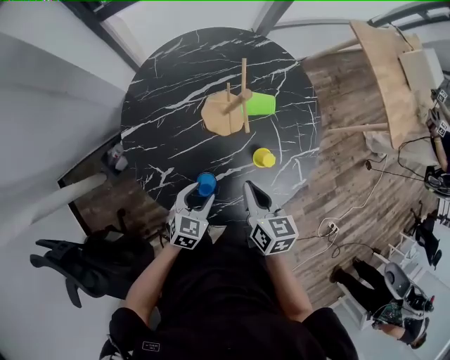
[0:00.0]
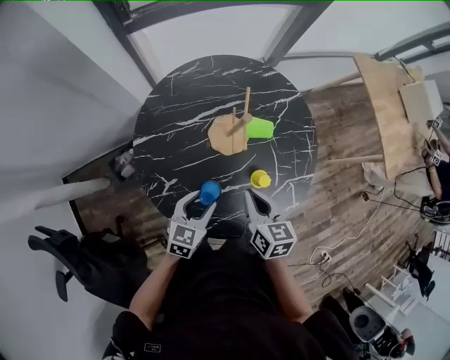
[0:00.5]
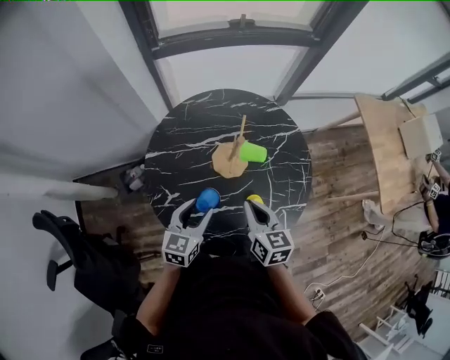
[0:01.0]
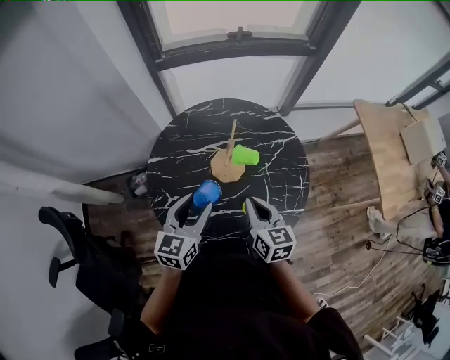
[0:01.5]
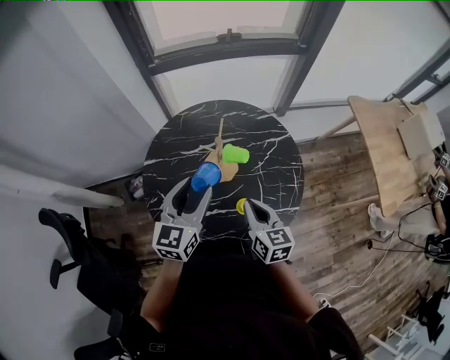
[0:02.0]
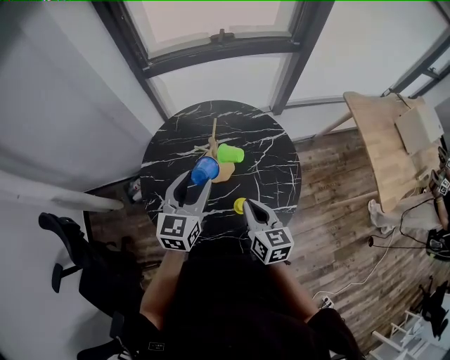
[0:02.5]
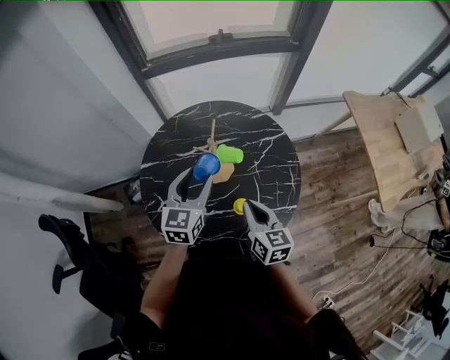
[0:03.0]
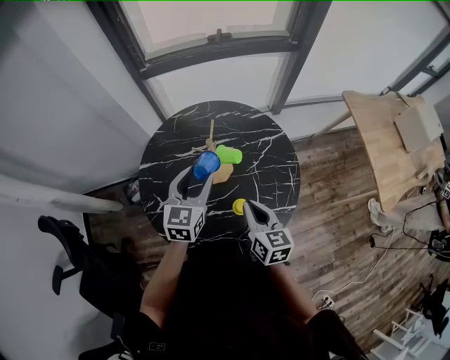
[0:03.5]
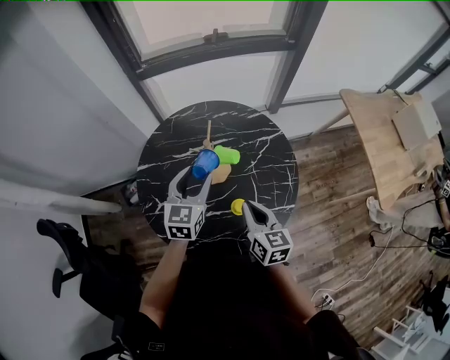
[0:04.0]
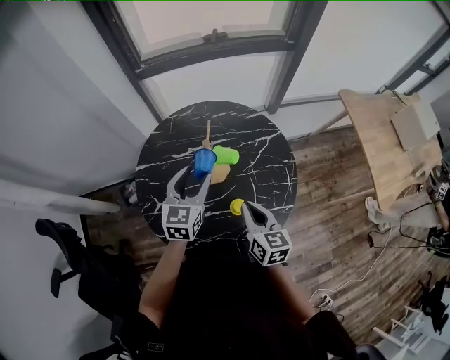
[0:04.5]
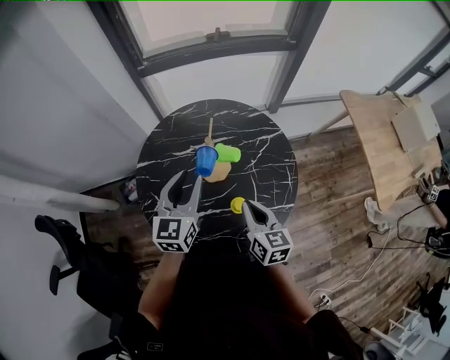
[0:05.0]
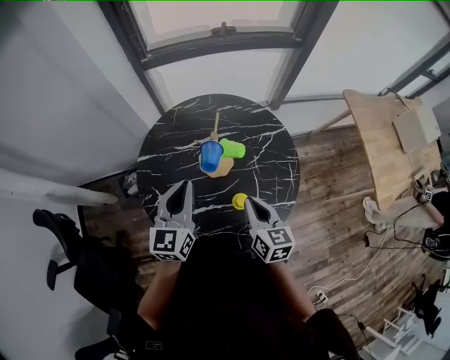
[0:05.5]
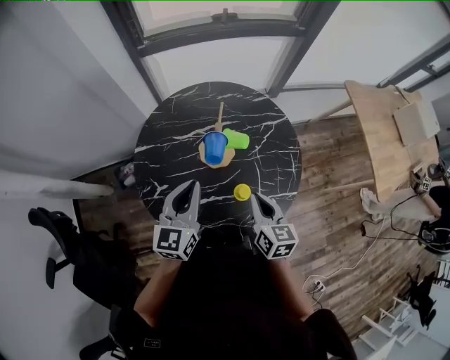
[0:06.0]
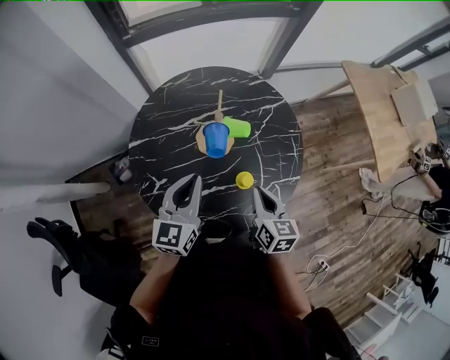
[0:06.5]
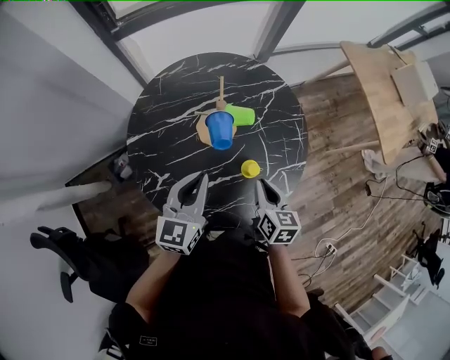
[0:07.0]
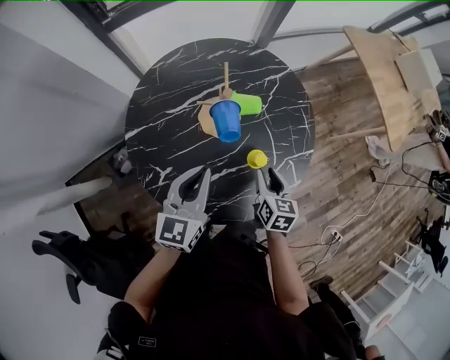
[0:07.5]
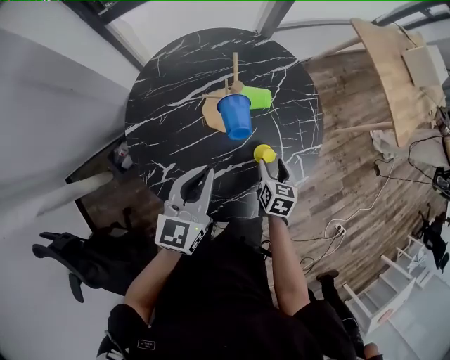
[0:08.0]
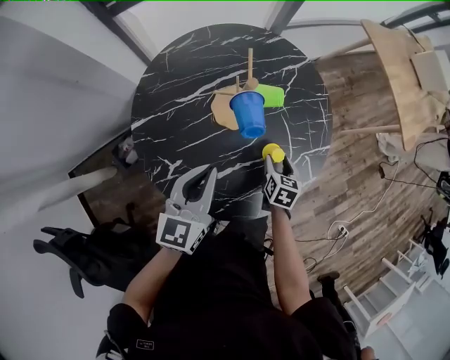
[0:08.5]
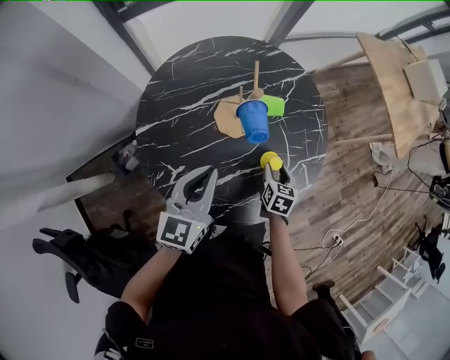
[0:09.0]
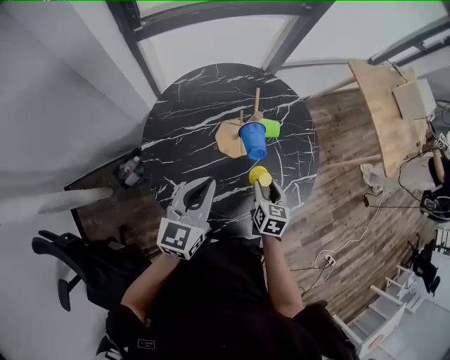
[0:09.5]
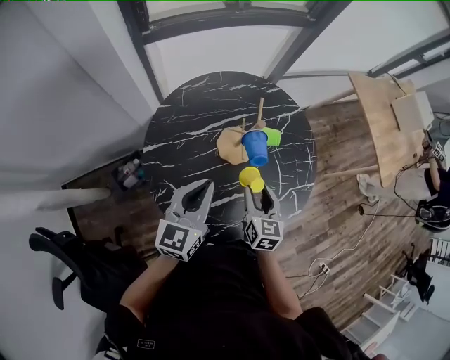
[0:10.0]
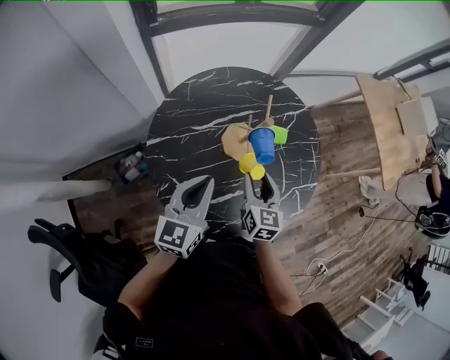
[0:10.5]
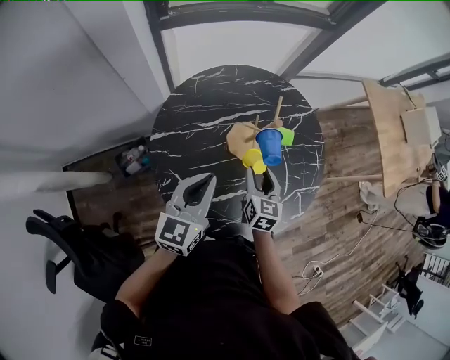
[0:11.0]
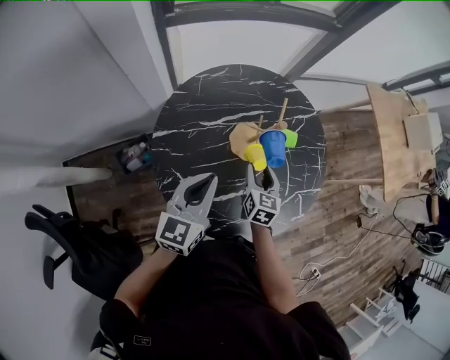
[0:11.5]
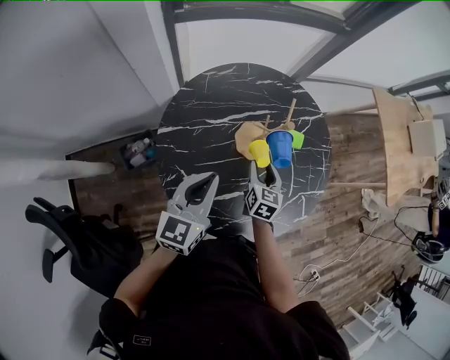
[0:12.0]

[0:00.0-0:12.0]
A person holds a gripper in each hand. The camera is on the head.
0:00.0 to 0:02.0: The left gripper goes about 30 cm upward, and tilts its fingers about 30 degrees upward. Meanwhile the right gripper is displaced upward and to the right by about 15 cm, and swivels approximately 20 degrees.
0:02.0 to 0:04.0: The left gripper goes some 10 cm downward and forward.
0:04.0 to 0:06.0: The left gripper shifts about 10 cm backward and to the left, and closes its fingers.
0:06.0 to 0:08.0: The left gripper moves downward, some 5 cm; the right gripper is displaced downward by about 20 cm, turns by about 30 degrees, and opens up.
0:08.0 to 0:10.0: The left gripper moves to the left, roughly 5 cm. The right gripper goes about 15 cm upward and to the left, and changes its angle by roughly 20 degrees.
0:10.0 to 0:12.0: The right gripper heads downward and forward, covering about 10 cm.

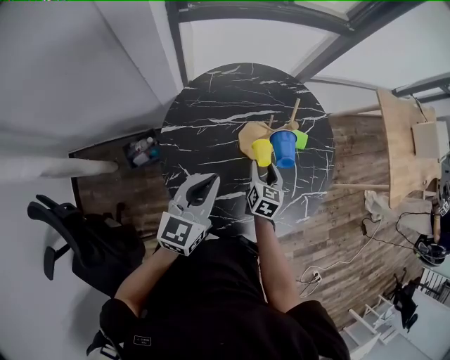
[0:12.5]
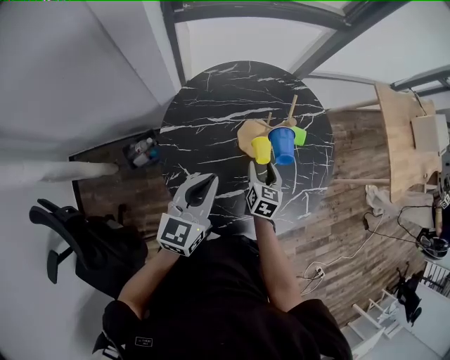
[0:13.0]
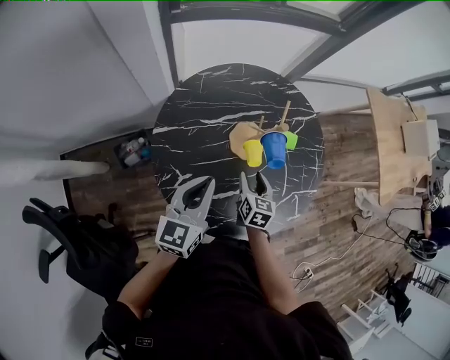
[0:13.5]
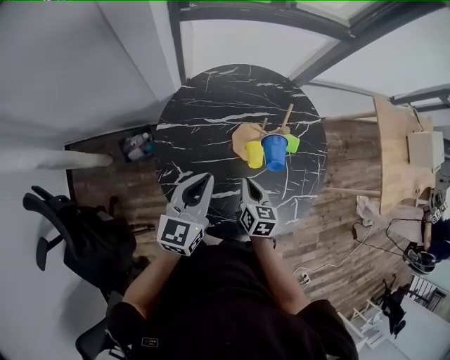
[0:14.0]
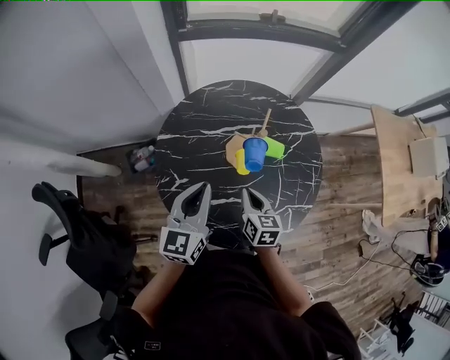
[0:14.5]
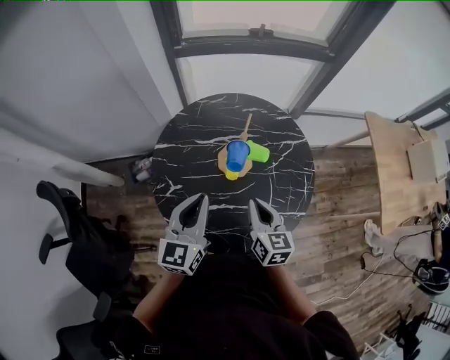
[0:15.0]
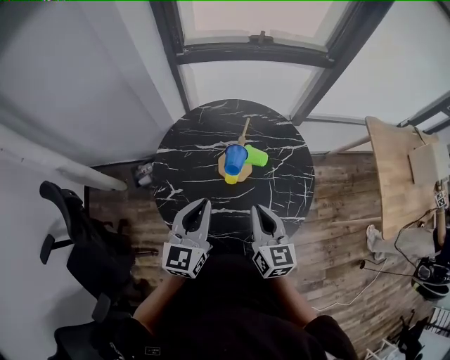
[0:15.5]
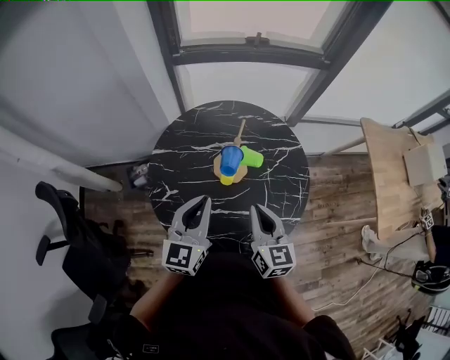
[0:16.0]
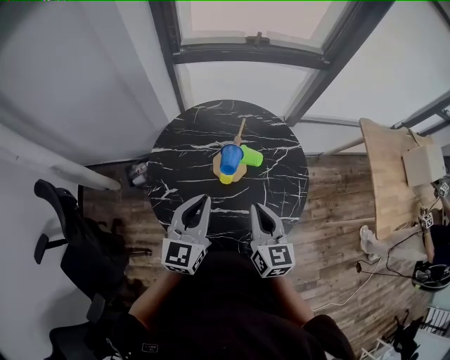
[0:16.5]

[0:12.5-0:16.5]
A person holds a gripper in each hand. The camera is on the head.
0:12.5 to 0:14.5: The right gripper shifts approximately 10 cm upward and backward, changes its angle by approximately 20 degrees, and closes up. The left gripper shifts by about 5 cm.
0:14.5 to 0:16.5: The left gripper travels to the right by roughly 5 cm. The right gripper moves upward and to the right, roughly 15 cm, and swivels approximately 20 degrees.

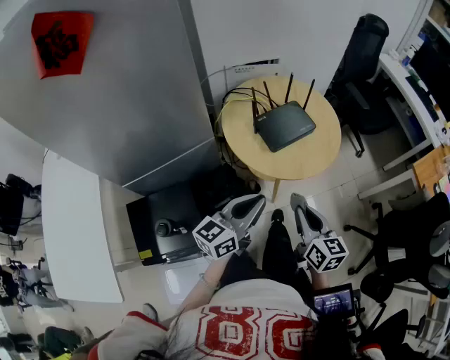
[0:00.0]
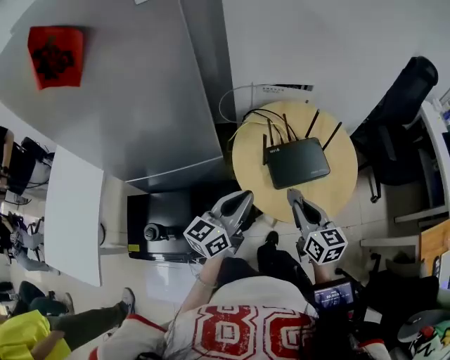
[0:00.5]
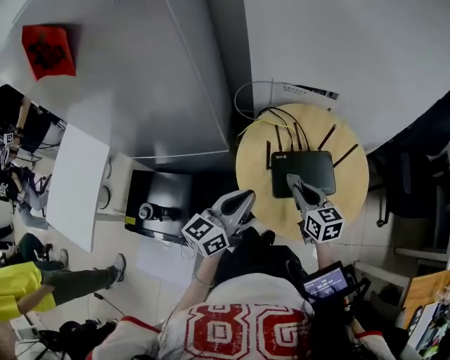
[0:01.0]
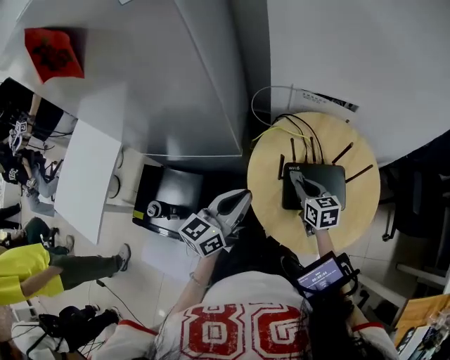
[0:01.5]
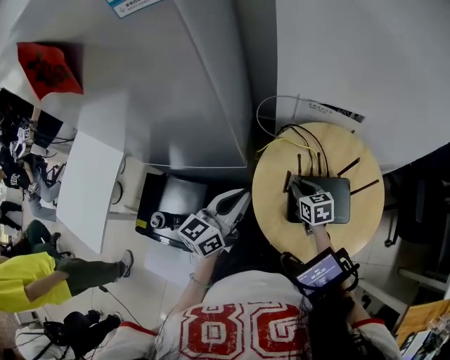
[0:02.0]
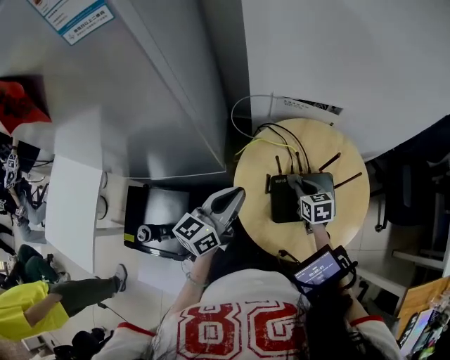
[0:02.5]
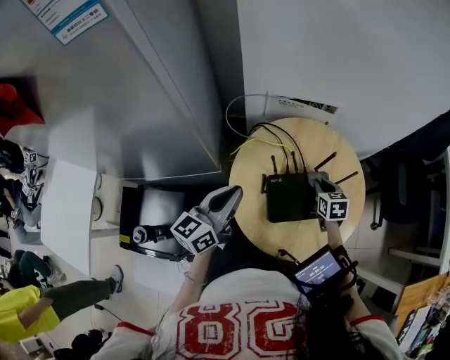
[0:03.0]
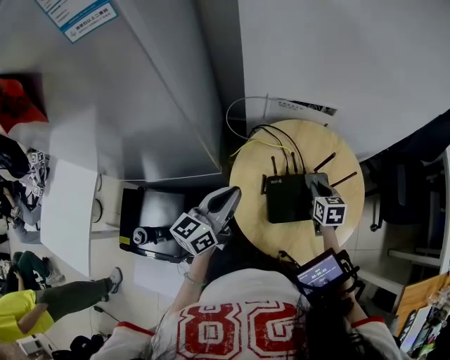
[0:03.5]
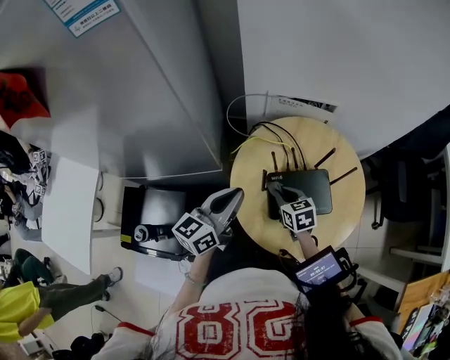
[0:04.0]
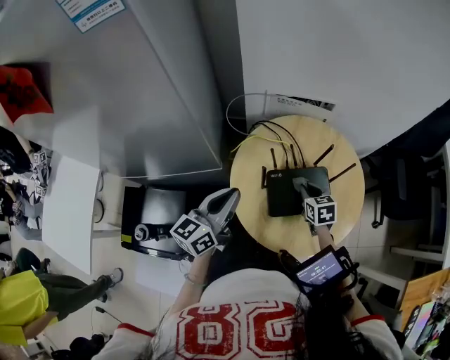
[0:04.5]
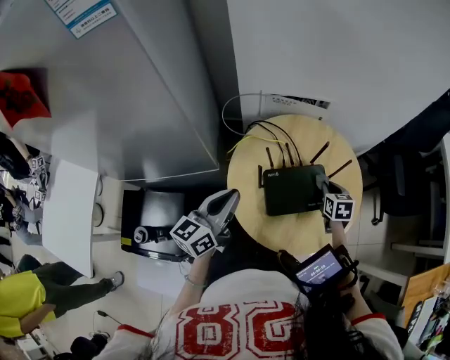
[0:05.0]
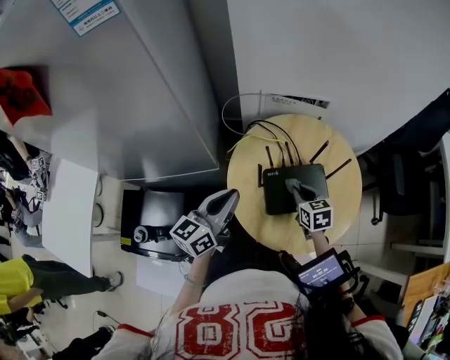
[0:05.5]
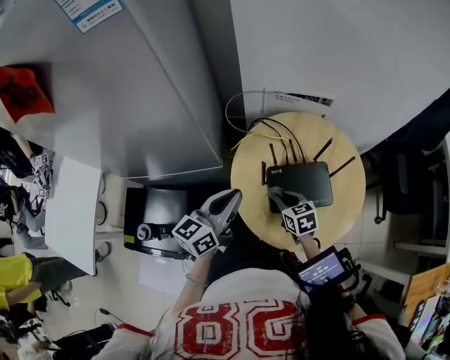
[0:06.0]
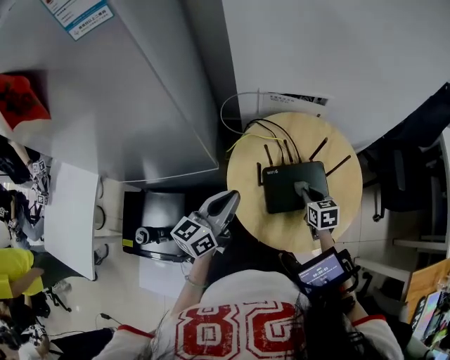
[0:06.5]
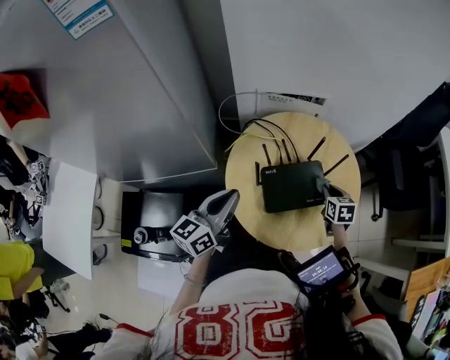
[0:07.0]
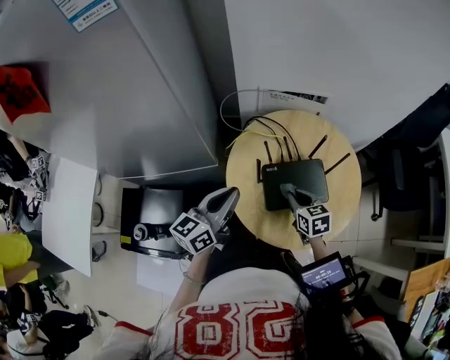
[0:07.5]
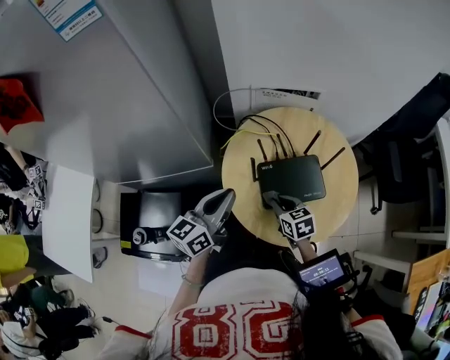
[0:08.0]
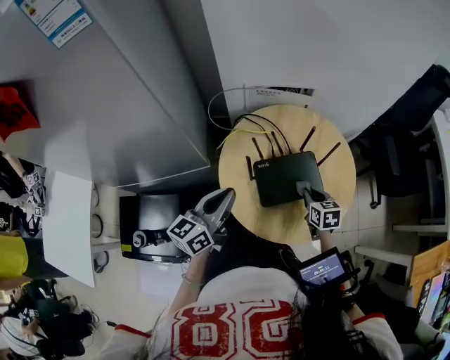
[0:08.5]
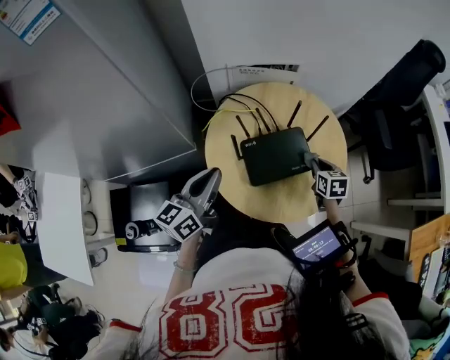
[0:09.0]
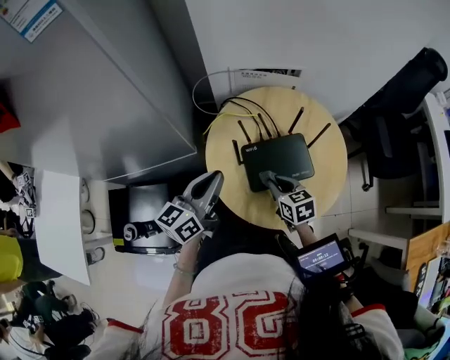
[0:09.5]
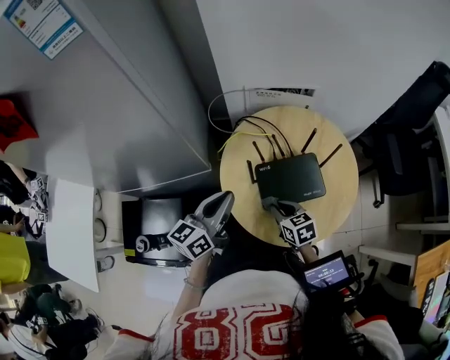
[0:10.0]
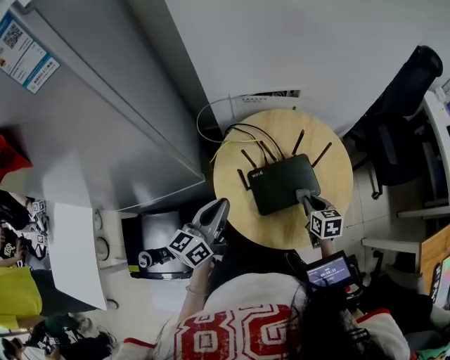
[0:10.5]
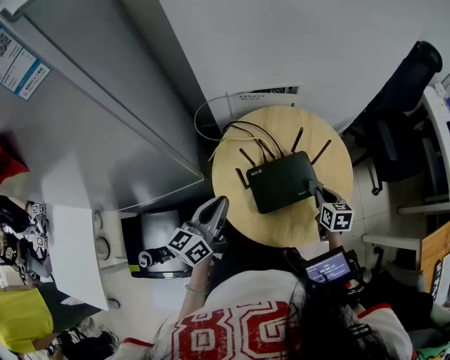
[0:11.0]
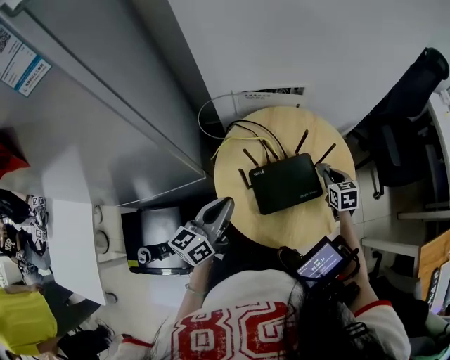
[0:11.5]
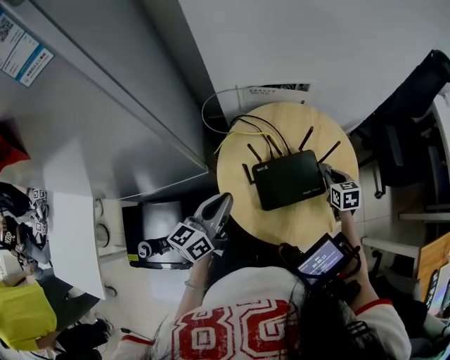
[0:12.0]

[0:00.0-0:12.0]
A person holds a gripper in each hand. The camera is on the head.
0:00.0 to 0:02.0: The right gripper changes place by some 40 cm, and changes its angle by about 50 degrees, while the left gripper shifts by approximately 20 cm, and turns by approximately 30 degrees.
0:02.0 to 0:04.0: The right gripper goes to the right and returns, about 20 cm each way.
0:04.0 to 0:06.0: The right gripper moves roughly 20 cm to the right and comes back.
0:06.0 to 0:08.0: The right gripper reaches about 20 cm to the right, then returns.
0:08.0 to 0:10.0: The right gripper reaches approximately 20 cm to the right, then returns.
0:10.0 to 0:12.0: The right gripper goes roughly 25 cm to the right and forward, and turns by about 20 degrees.
